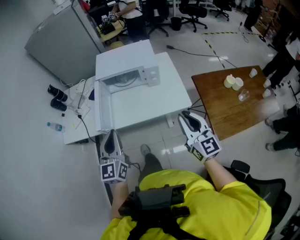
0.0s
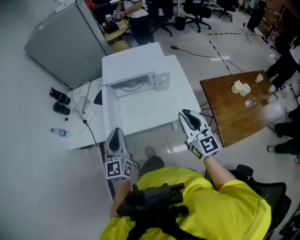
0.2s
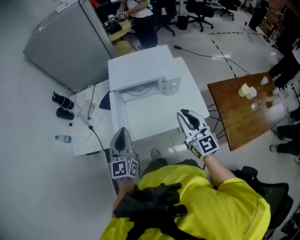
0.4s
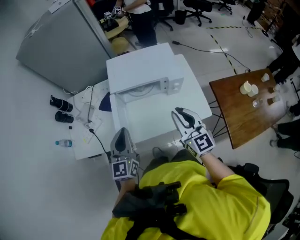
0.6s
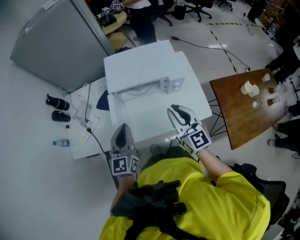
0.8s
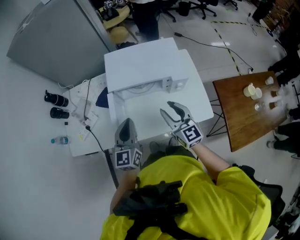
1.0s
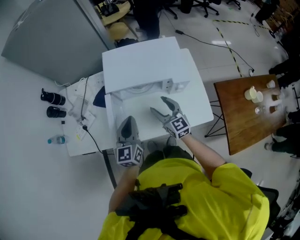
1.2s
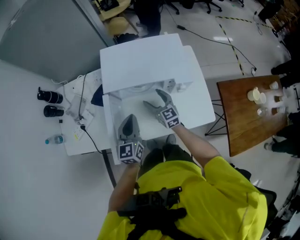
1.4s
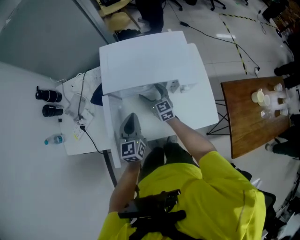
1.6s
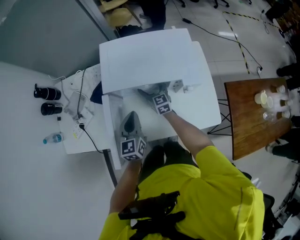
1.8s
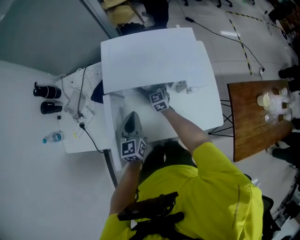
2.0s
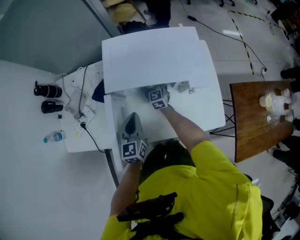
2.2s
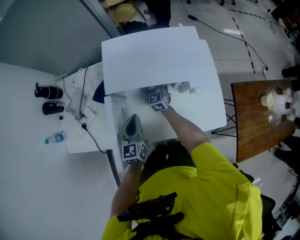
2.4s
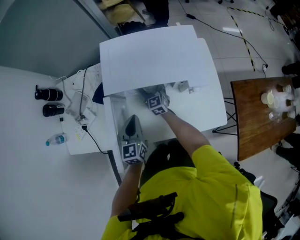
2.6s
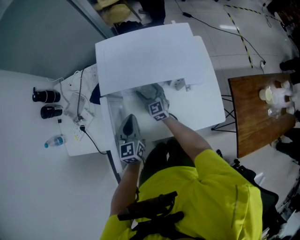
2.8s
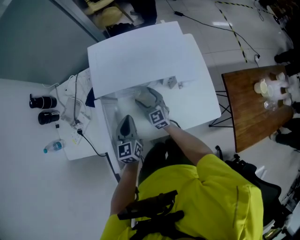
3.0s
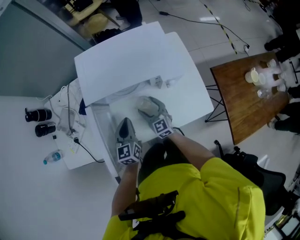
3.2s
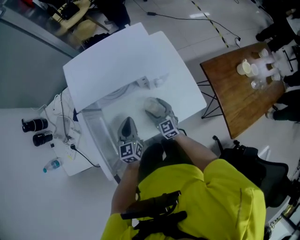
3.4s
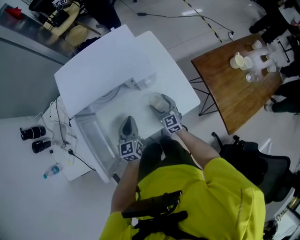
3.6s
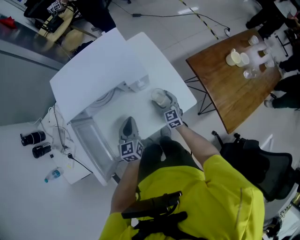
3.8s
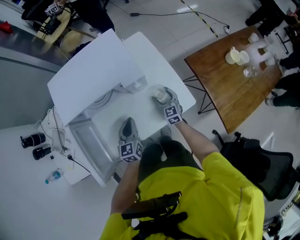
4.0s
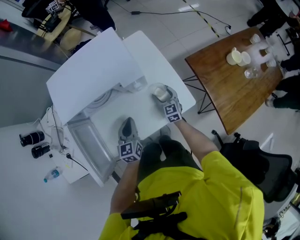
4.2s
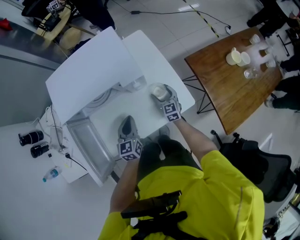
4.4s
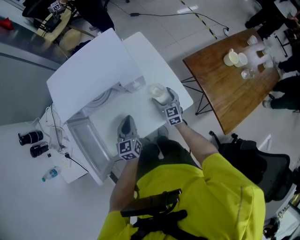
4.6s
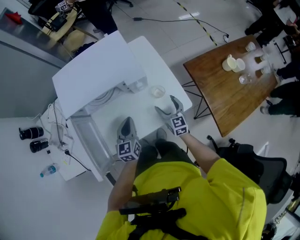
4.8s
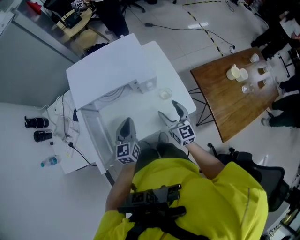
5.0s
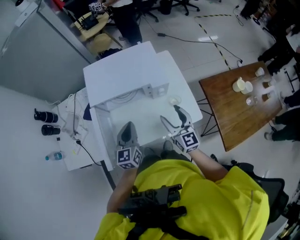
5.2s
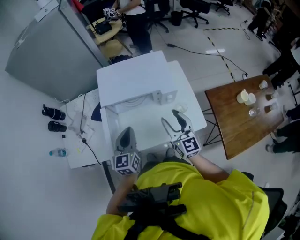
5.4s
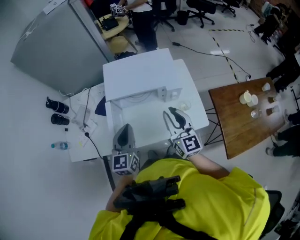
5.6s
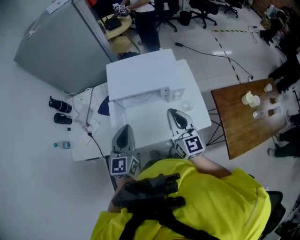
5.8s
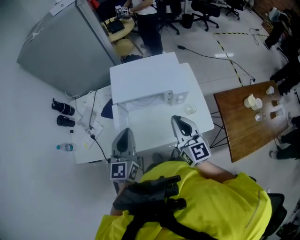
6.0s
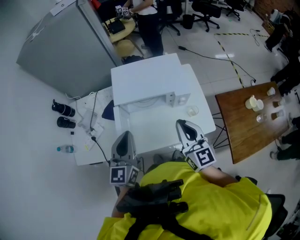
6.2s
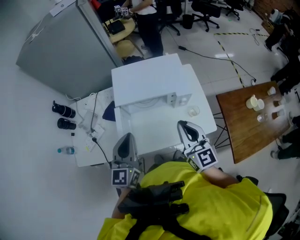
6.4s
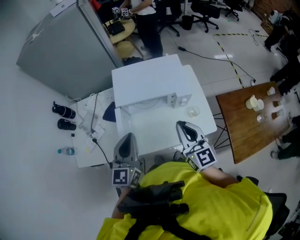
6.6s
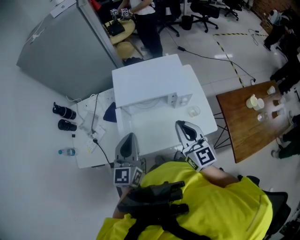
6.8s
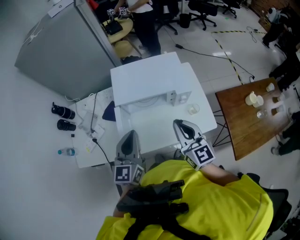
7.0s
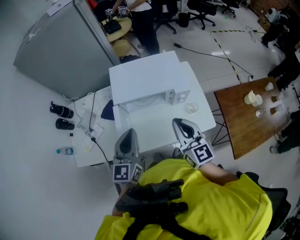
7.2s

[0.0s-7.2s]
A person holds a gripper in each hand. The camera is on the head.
0.0s to 1.4s: The left gripper goes some 35 cm forward and downward; the right gripper goes approximately 50 cm forward, downward and to the left, and opens its fingers.
1.4s to 2.8s: The left gripper shifts approximately 10 cm downward; the right gripper travels downward and forward by about 10 cm.
2.8s to 4.4s: The right gripper shifts about 35 cm to the right, and rotates about 30 degrees. Meanwhile the left gripper goes approximately 20 cm to the right.
4.4s to 5.8s: Both grippers travel together upward and to the left, some 40 cm. The left gripper rotates roughly 20 degrees. The right gripper rotates roughly 30 degrees, and closes.
5.8s to 7.2s: The grippers move only a little.

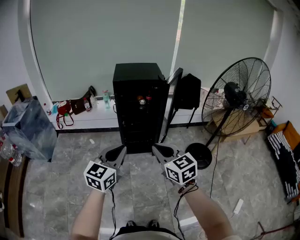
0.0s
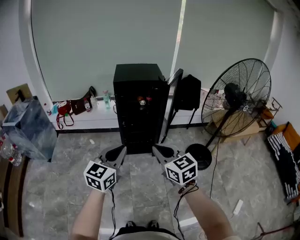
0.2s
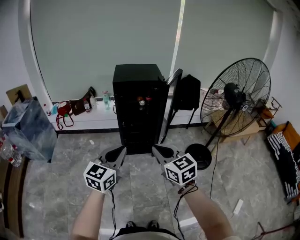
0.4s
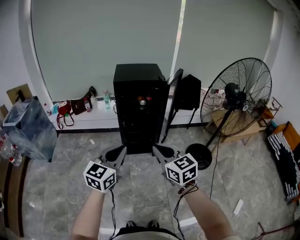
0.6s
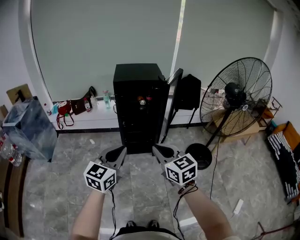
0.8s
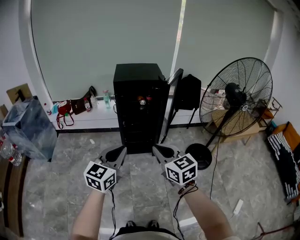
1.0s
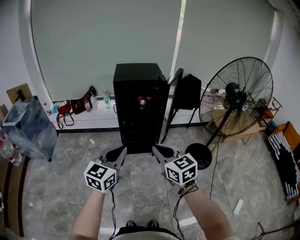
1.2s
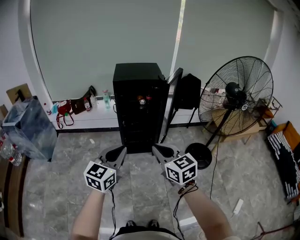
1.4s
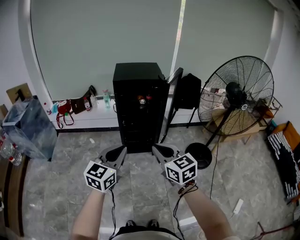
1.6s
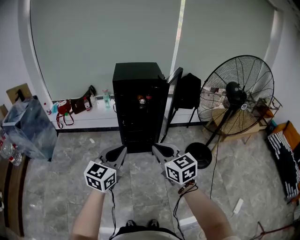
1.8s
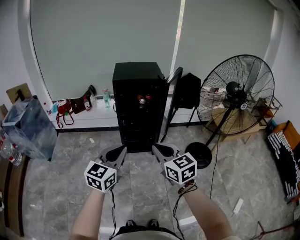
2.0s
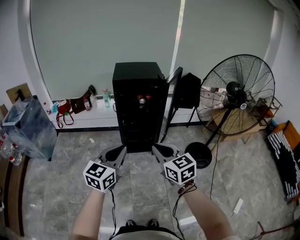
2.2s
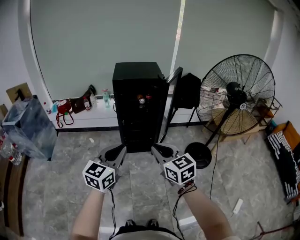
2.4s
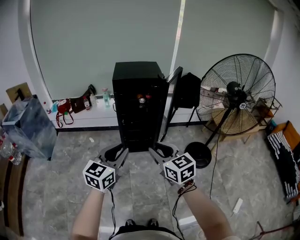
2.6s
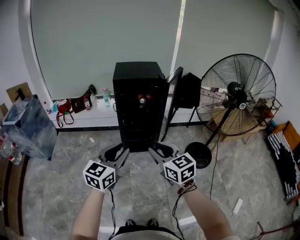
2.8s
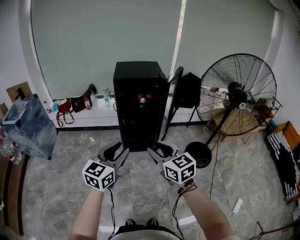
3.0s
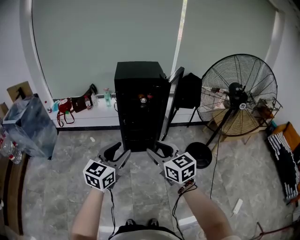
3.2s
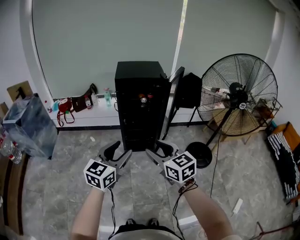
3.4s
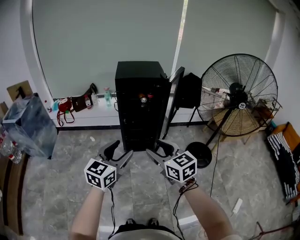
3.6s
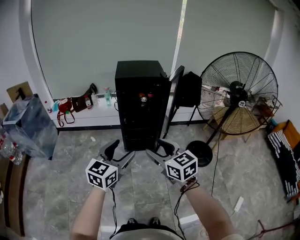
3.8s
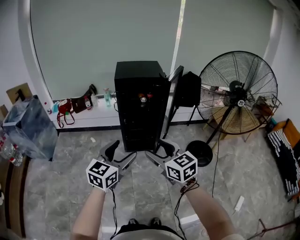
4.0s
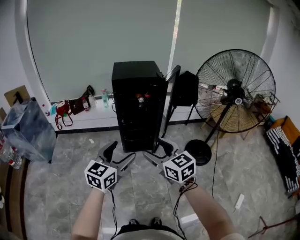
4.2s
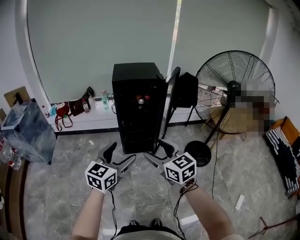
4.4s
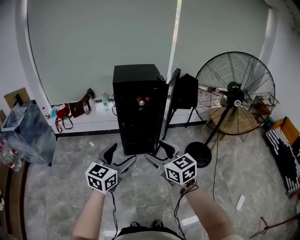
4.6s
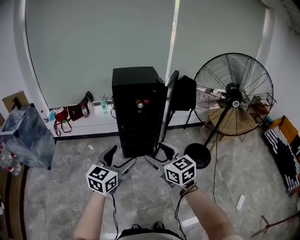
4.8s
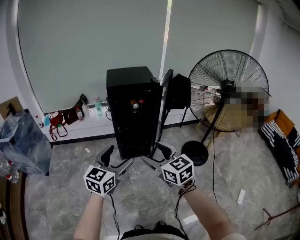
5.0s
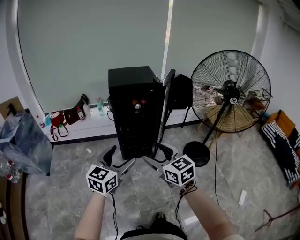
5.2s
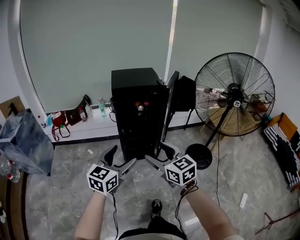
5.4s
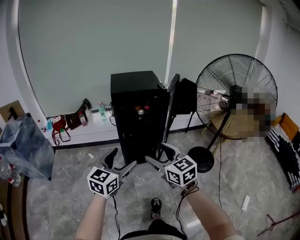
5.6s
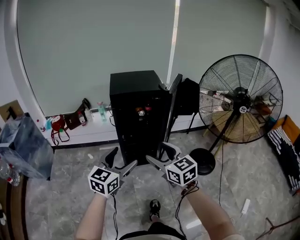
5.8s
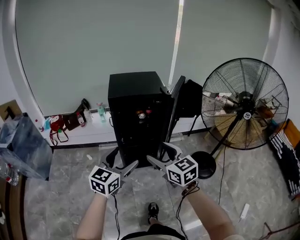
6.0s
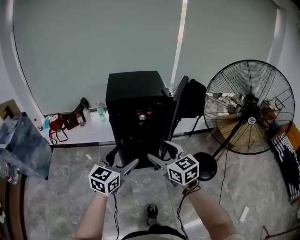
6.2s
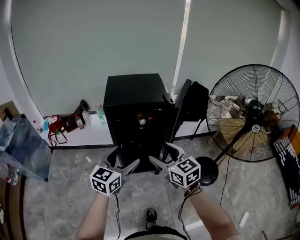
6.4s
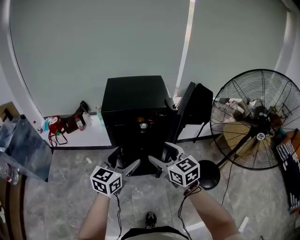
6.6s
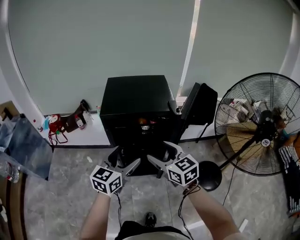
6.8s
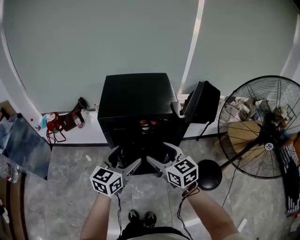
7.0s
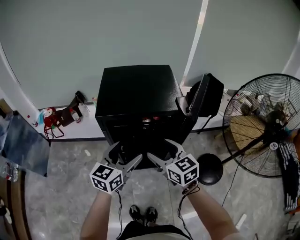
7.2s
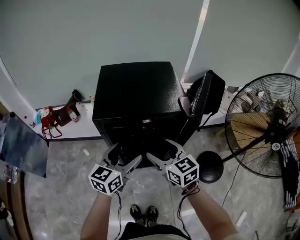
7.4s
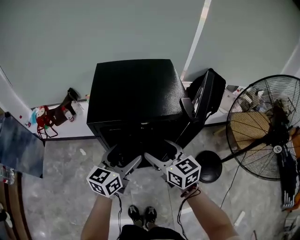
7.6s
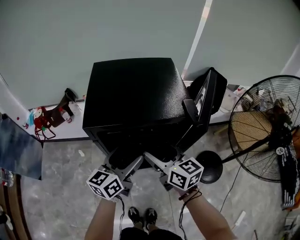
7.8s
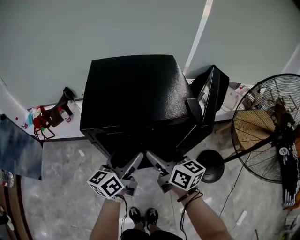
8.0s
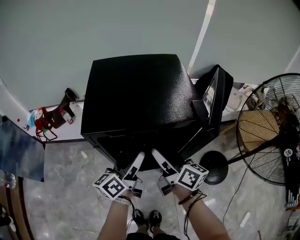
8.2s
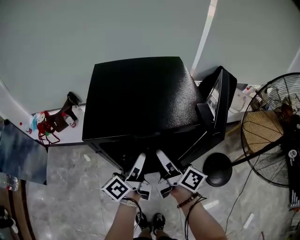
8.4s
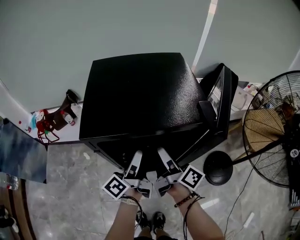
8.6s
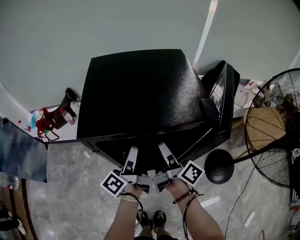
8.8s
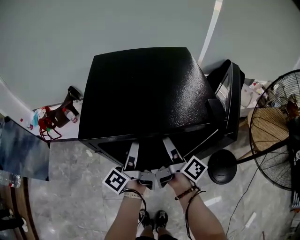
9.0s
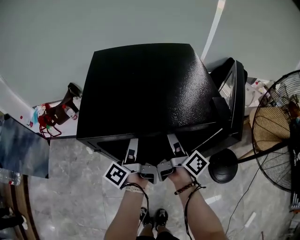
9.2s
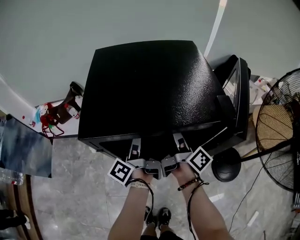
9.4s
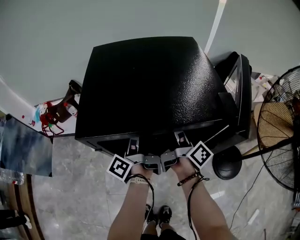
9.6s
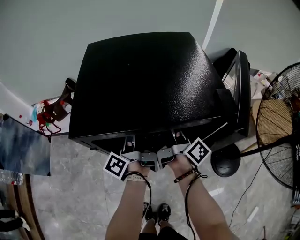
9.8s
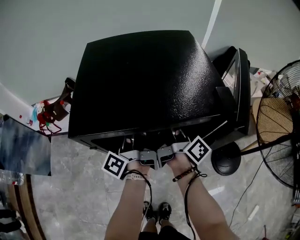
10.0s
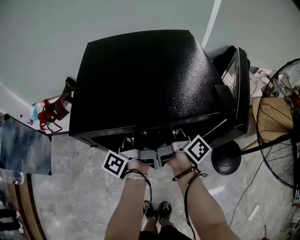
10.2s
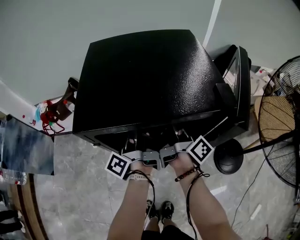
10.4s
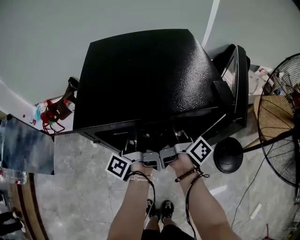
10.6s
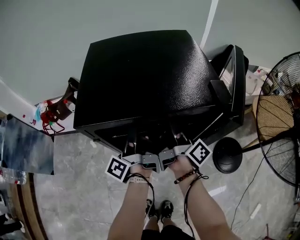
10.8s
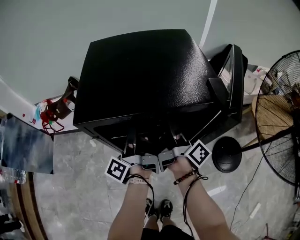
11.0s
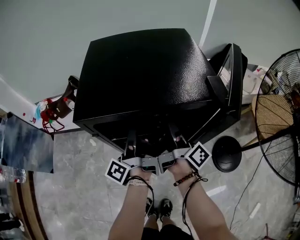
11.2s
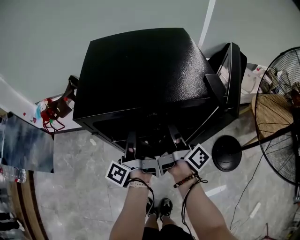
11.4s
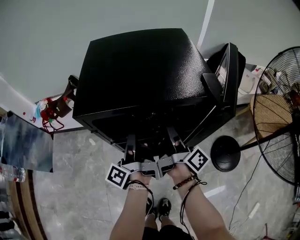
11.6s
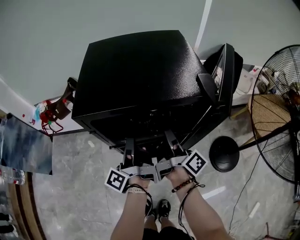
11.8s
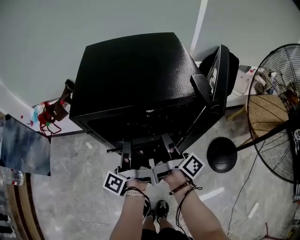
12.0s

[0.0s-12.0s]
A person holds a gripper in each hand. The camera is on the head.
0.0s to 1.6s: The two grippers keep their place.
1.6s to 3.0s: The right gripper opens up.
3.0s to 4.4s: The left gripper opens; the right gripper opens.
4.4s to 6.0s: Both grippers travel together forward, roughly 20 cm.
6.0s to 7.6s: The grippers both shift forward by approximately 30 cm.
7.6s to 9.0s: The two grippers go roughly 15 cm forward and downward. The right gripper twists roughly 60 degrees clockwise, seen from behind; the left gripper rolls counterclockwise, seen from behind, by some 60 degrees.
9.0s to 10.4s: The left gripper closes its fingers. The right gripper closes up.
10.4s to 12.0s: Both grippers travel together backward, about 10 cm.

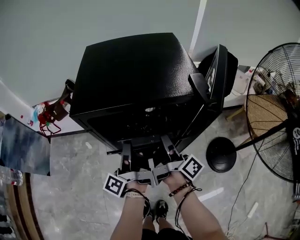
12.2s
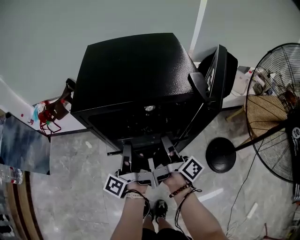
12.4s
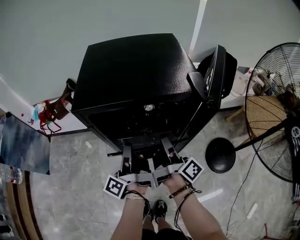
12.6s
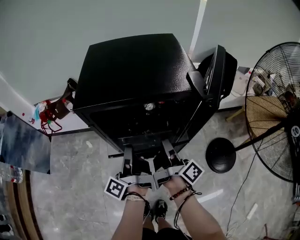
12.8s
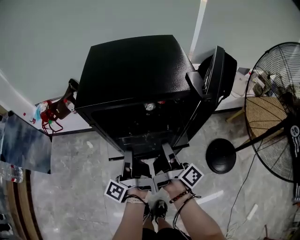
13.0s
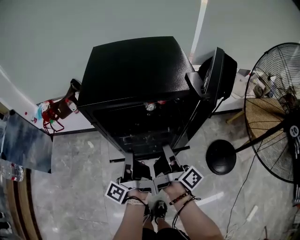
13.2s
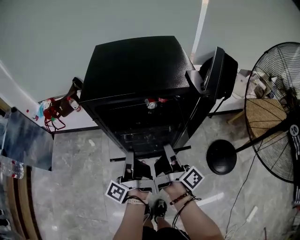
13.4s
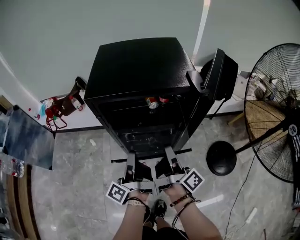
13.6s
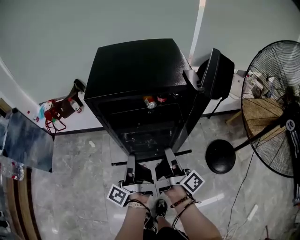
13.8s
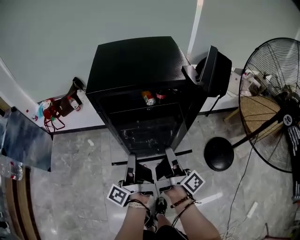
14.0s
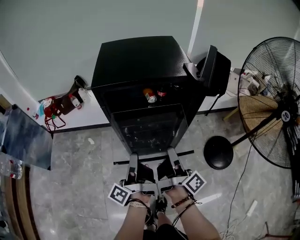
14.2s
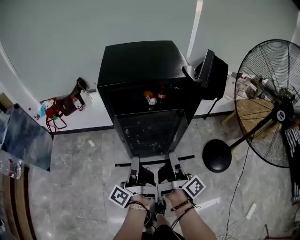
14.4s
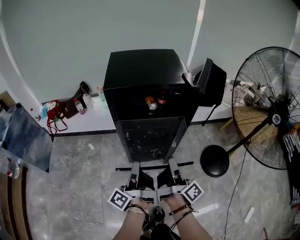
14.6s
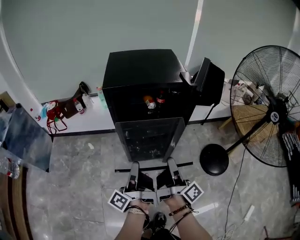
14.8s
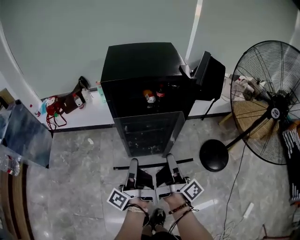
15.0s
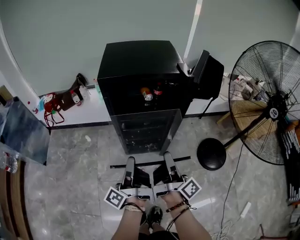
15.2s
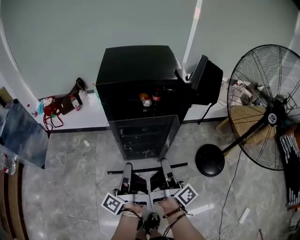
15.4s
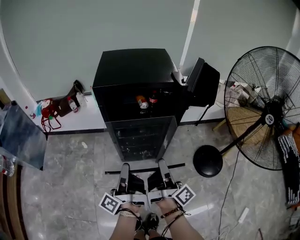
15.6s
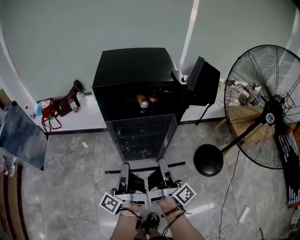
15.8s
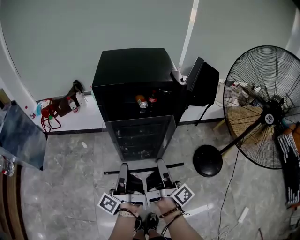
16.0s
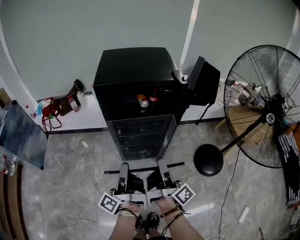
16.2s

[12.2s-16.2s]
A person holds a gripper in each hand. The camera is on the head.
12.2s to 13.6s: Both grippers move backward, about 10 cm.
13.6s to 14.8s: Both grippers travel together backward, some 15 cm.
14.8s to 16.2s: There are only small adjustments of the grippers.
